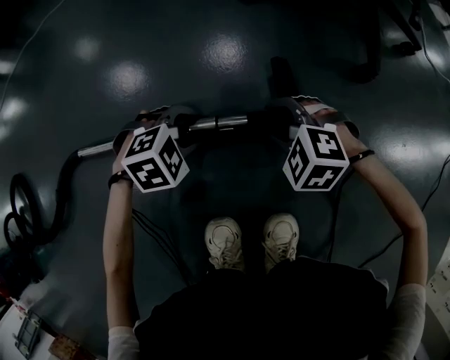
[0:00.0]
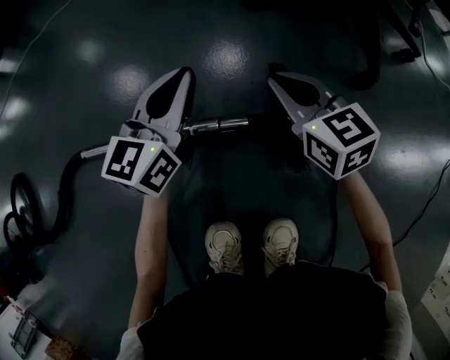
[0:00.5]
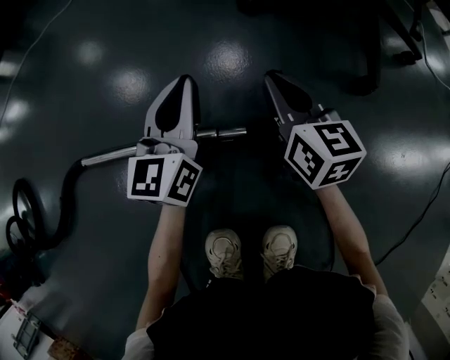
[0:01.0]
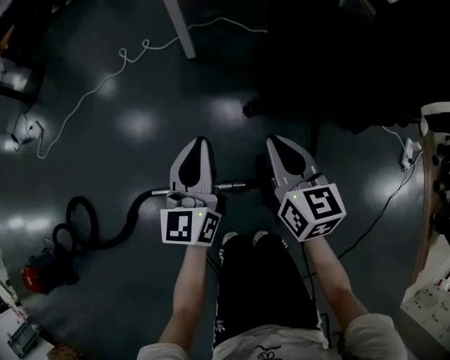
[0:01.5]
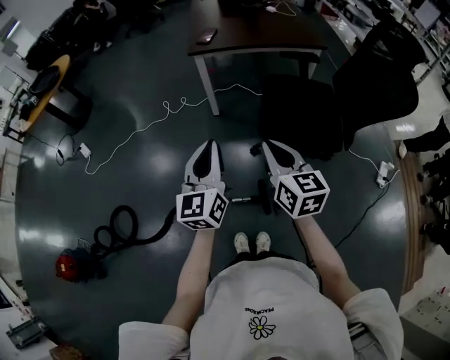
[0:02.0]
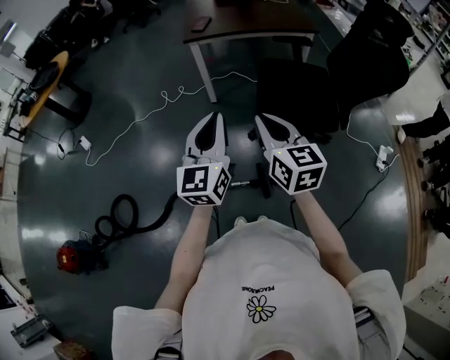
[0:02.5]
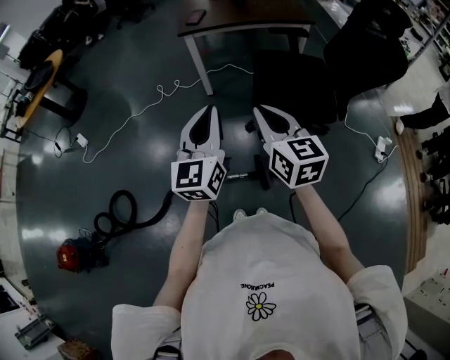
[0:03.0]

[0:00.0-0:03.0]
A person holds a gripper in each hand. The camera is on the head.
0:00.0 to 0:01.5: Both grippers move upward, approximately 60 cm. The left gripper points its fingers some 70 degrees further upward, and closes up; the right gripper points its fingers approximately 50 degrees further upward, and closes its fingers.
0:01.5 to 0:03.0: Both grippers move upward, roughly 40 cm.

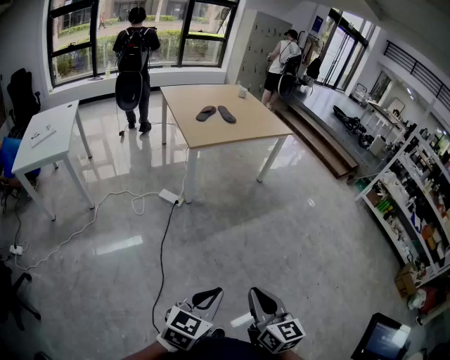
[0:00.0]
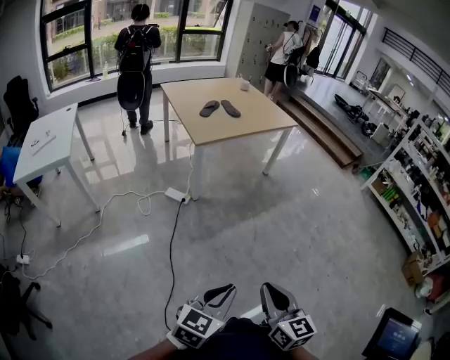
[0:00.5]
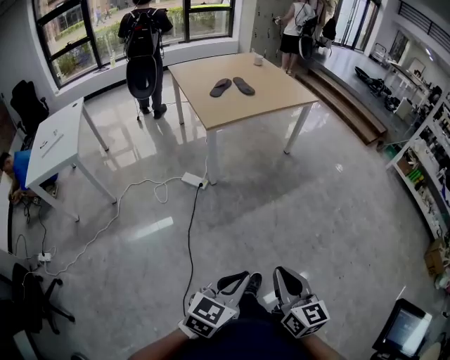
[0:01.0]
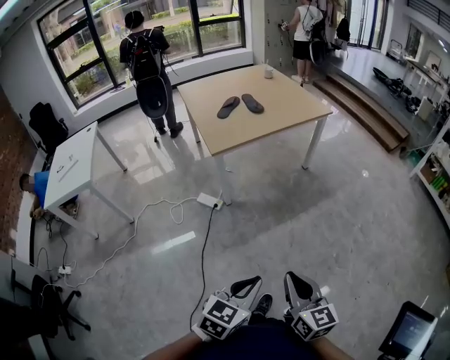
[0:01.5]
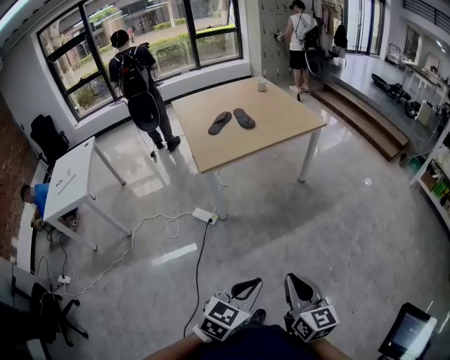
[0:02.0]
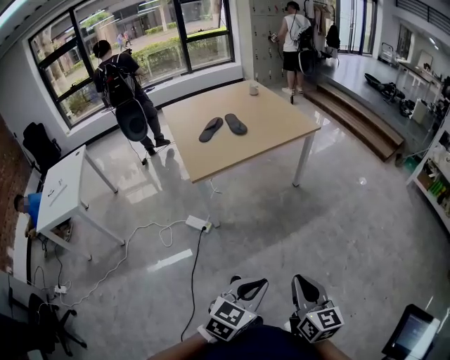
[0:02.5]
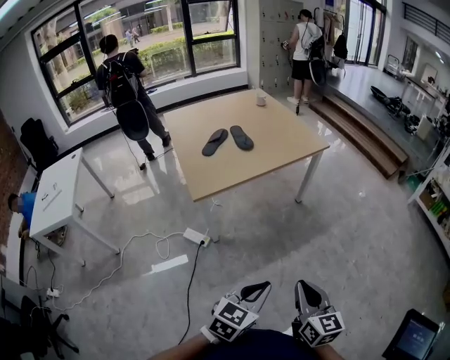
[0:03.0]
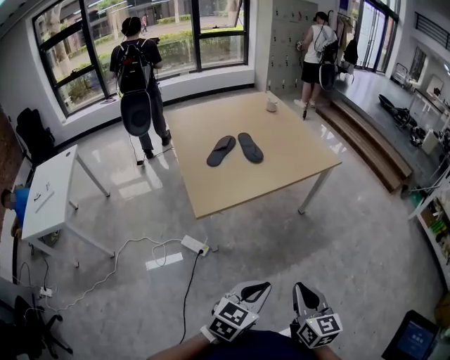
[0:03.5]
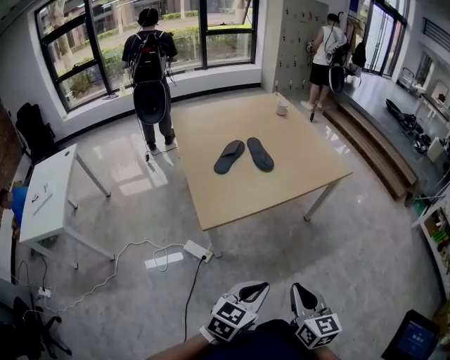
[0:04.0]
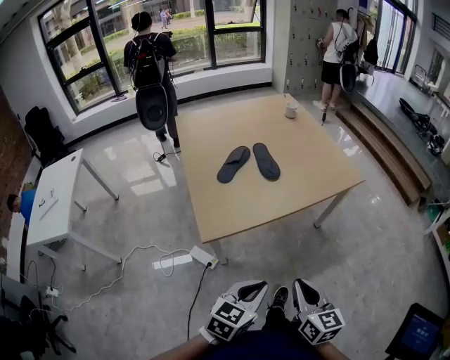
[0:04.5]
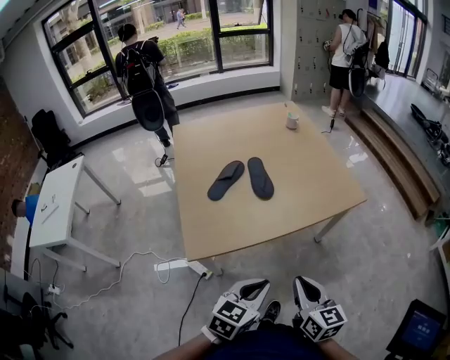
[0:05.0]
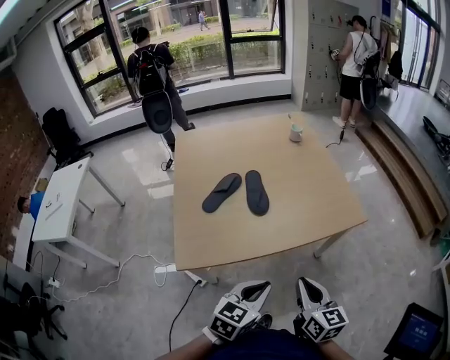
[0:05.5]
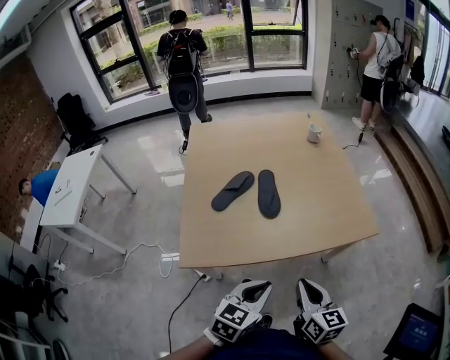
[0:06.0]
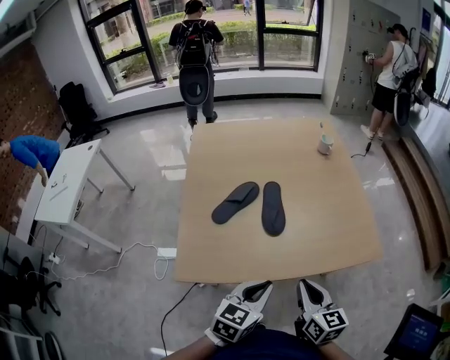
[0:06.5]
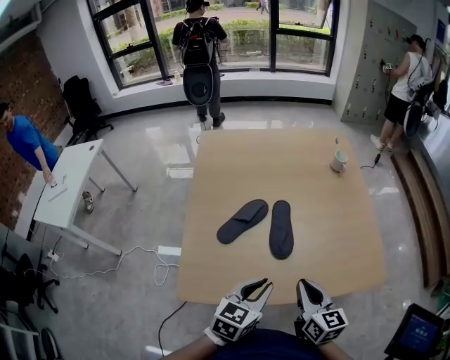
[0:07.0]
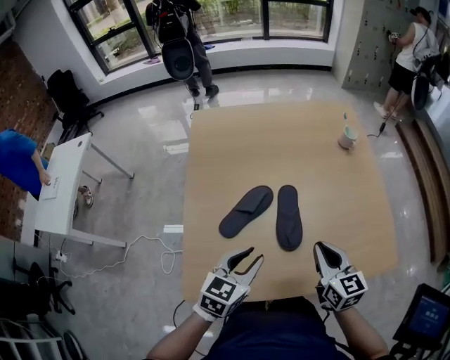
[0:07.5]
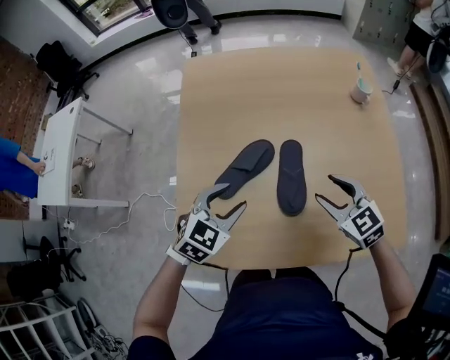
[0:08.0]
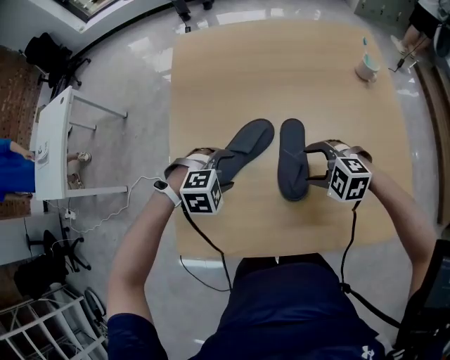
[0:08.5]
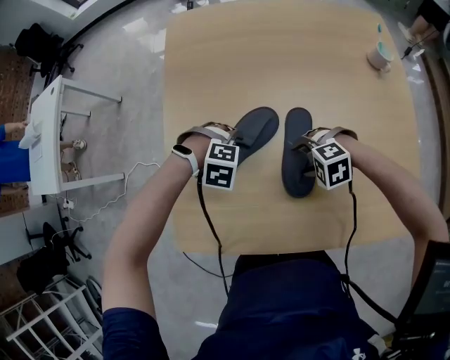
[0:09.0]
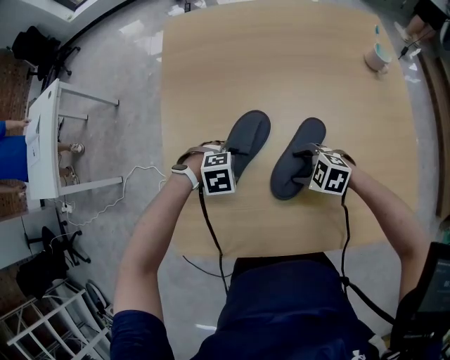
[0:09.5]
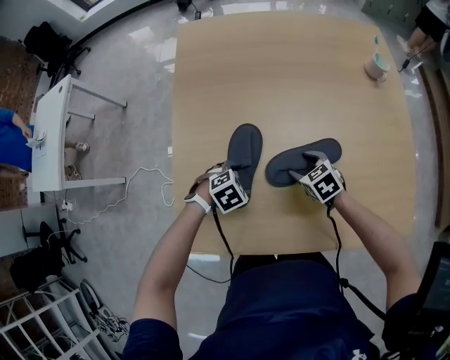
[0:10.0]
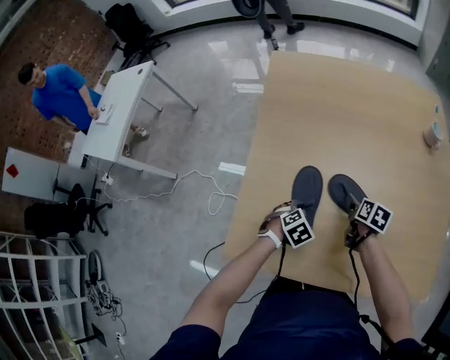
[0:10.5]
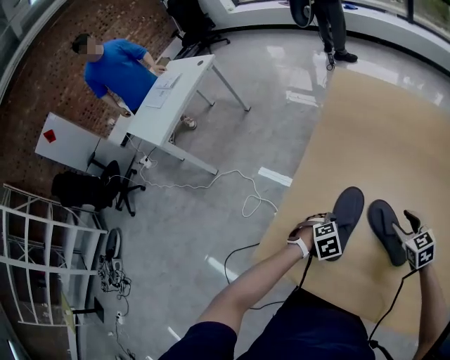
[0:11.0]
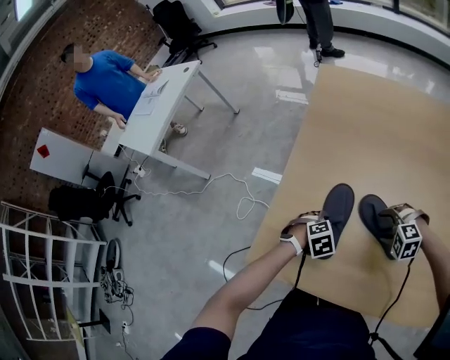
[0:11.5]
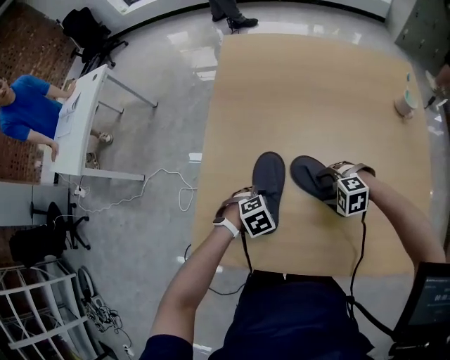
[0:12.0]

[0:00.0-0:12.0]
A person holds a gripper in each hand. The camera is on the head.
0:00.0 to 0:02.0: The left gripper shifts roughly 30 cm forward and to the right. Meanwhile the right gripper travels forward by approximately 25 cm.
0:02.0 to 0:04.0: Both grippers move forward and to the left, roughly 35 cm.
0:04.0 to 0:06.0: The grippers both shift forward by some 30 cm.
0:06.0 to 0:08.0: The left gripper moves forward and to the left, some 35 cm, rotates approximately 20 degrees, and opens up, while the right gripper heads forward, covering about 35 cm, turns by approximately 50 degrees, and opens up.
0:08.0 to 0:10.0: The two grippers go some 20 cm downward. The right gripper changes its angle by about 30 degrees; the left gripper points its fingers about 30 degrees further downward, and opens up.
0:10.0 to 0:12.0: The right gripper goes upward and returns, some 10 cm each way, and twists some 70 degrees counterclockwise, seen from behind.

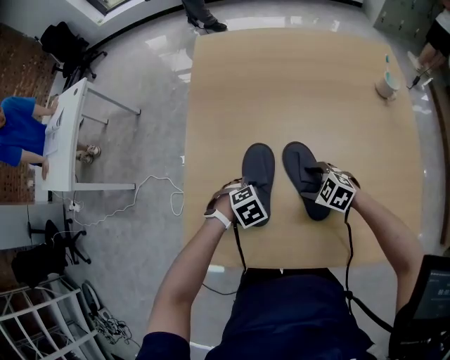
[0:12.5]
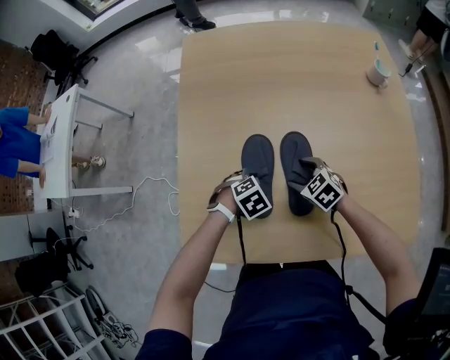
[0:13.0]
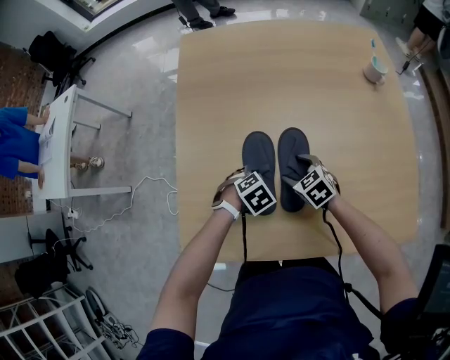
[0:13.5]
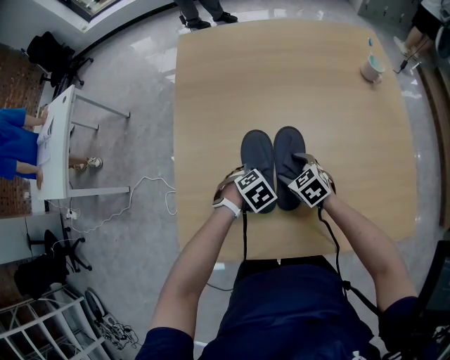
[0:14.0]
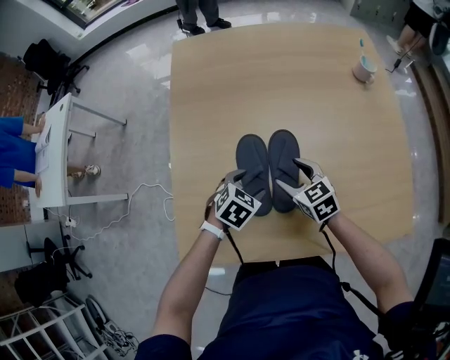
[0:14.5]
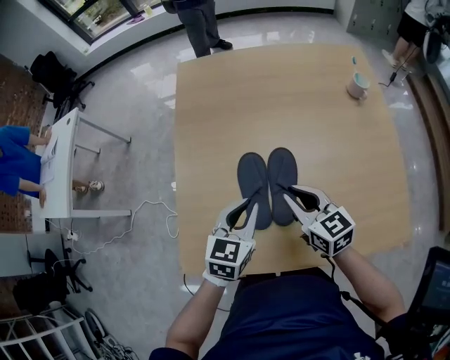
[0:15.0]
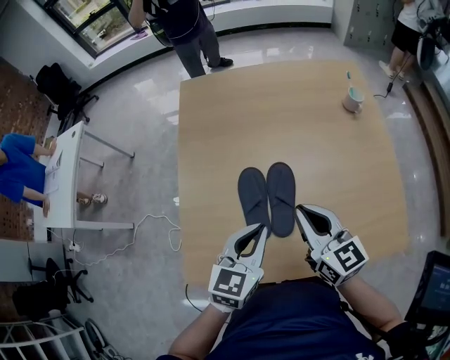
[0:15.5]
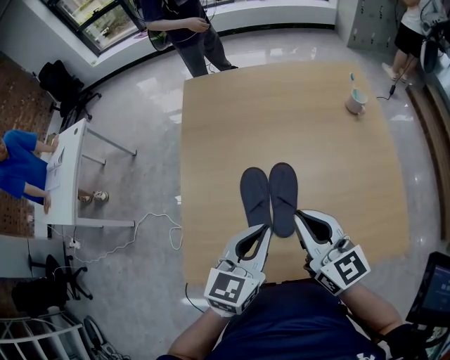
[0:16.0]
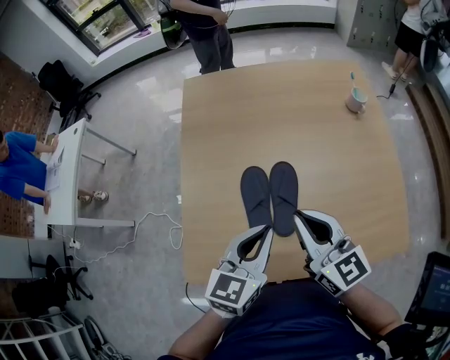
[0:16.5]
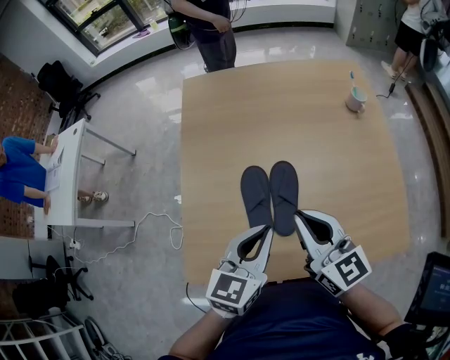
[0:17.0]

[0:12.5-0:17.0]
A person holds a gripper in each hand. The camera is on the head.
0:12.5 to 0:14.5: Both grippers travel together upward, roughly 5 cm. The right gripper changes its angle by roughly 40 degrees. Meanwhile the left gripper changes its angle by some 30 degrees.
0:14.5 to 0:17.0: The grippers both shift upward by approximately 25 cm. The right gripper tilts its fingers approximately 30 degrees upward, and closes; the left gripper tips its fingers upward by roughly 40 degrees, and closes its fingers.

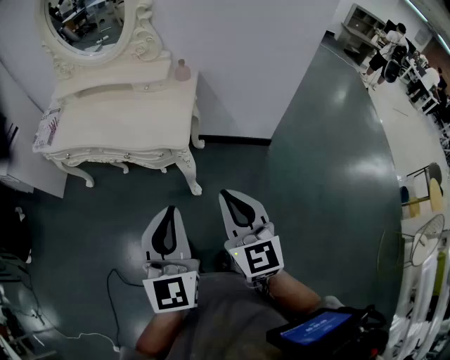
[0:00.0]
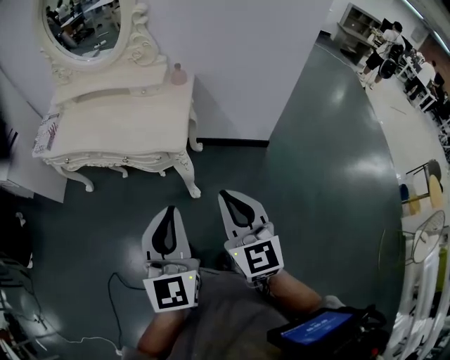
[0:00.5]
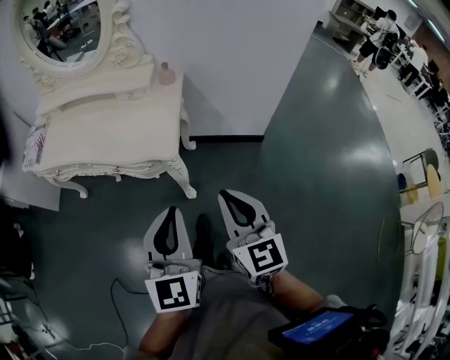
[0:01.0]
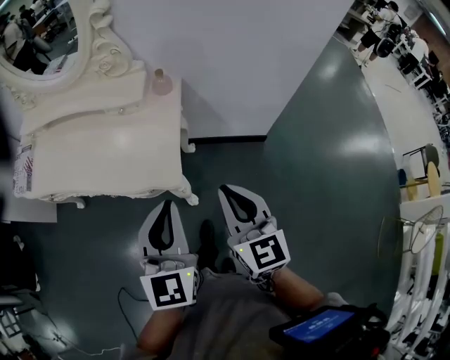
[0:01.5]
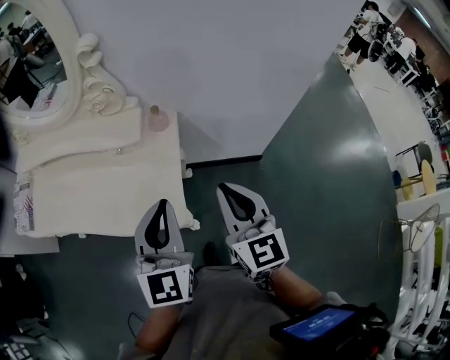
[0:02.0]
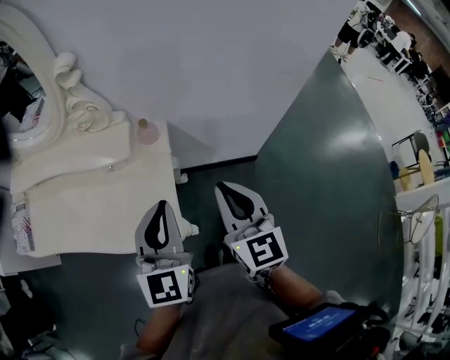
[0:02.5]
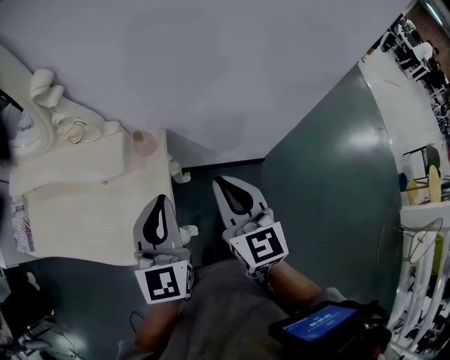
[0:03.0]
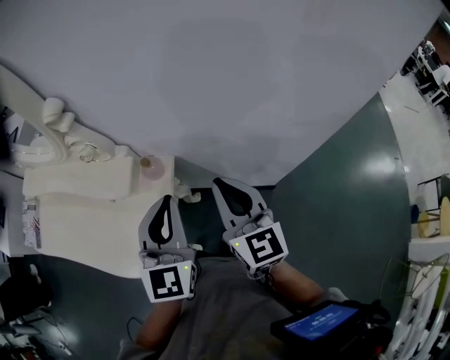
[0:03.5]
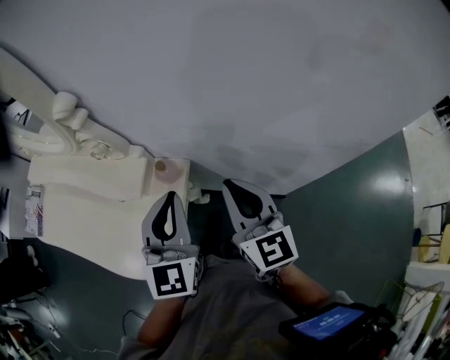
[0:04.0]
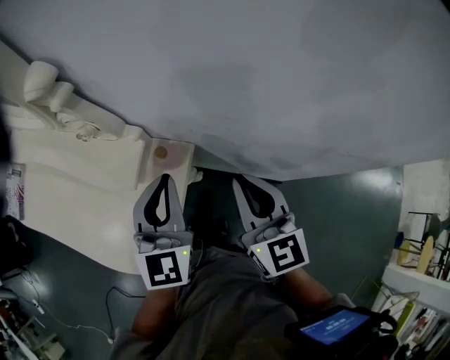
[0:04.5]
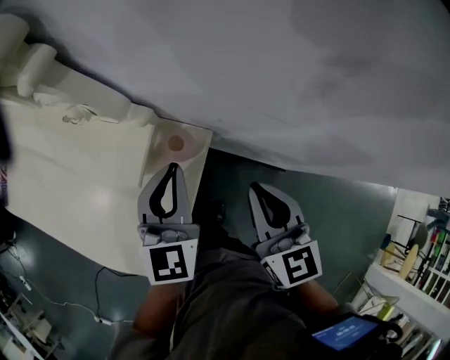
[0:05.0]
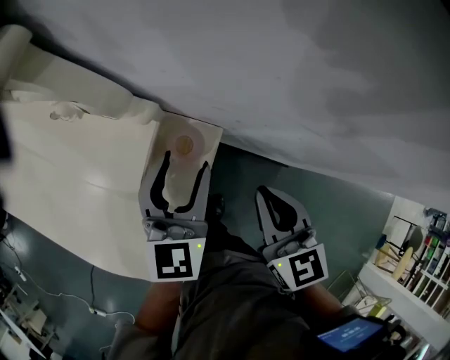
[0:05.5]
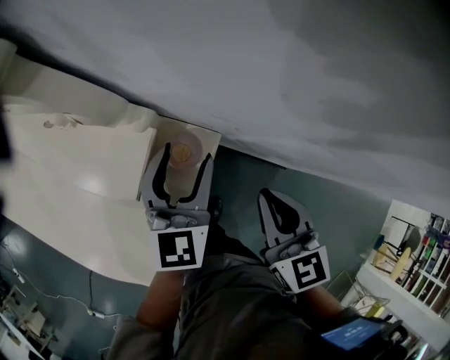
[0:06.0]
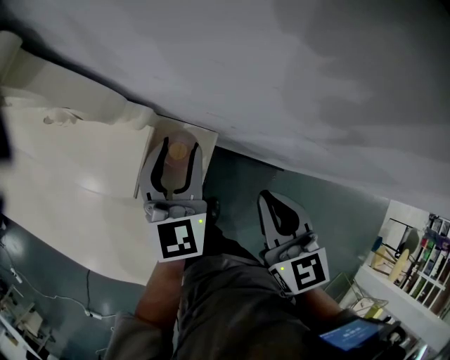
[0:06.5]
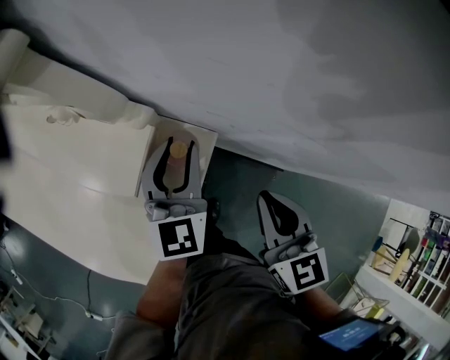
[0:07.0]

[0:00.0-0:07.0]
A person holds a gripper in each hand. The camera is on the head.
0:00.0 to 0:02.0: Both grippers travel together forward, about 30 cm.
0:02.0 to 0:03.5: The two grippers go roughly 25 cm forward and to the right.
0:03.5 to 0:05.0: The right gripper heads downward and forward, covering approximately 15 cm. Meanwhile the left gripper goes approximately 20 cm downward, forward and to the left.
0:05.0 to 0:07.0: The left gripper shifts some 5 cm forward, and opens.
